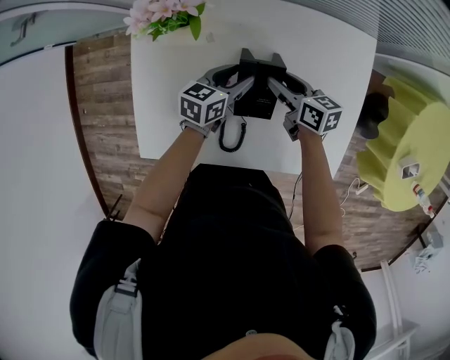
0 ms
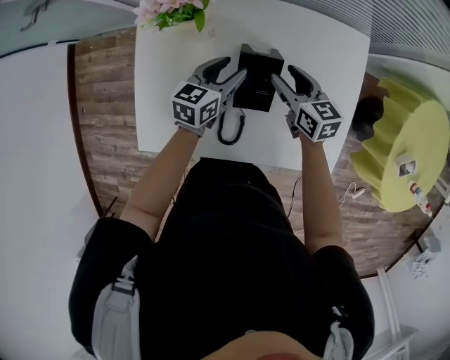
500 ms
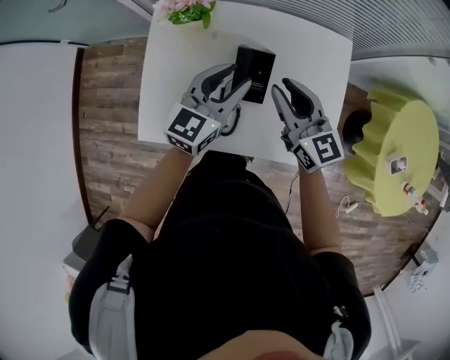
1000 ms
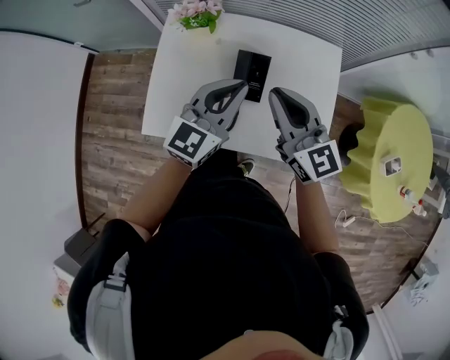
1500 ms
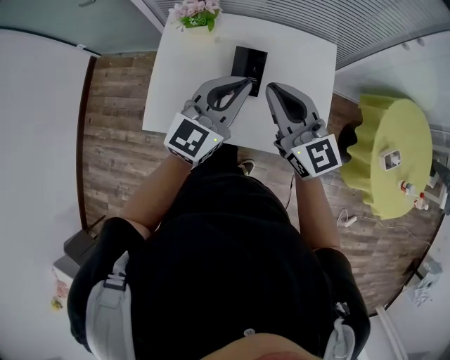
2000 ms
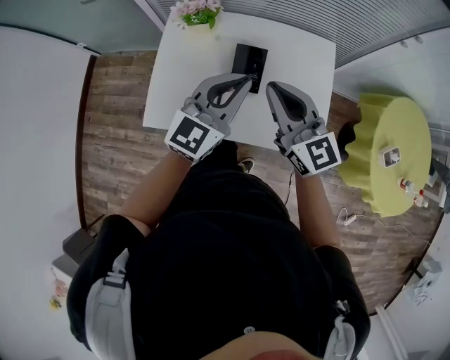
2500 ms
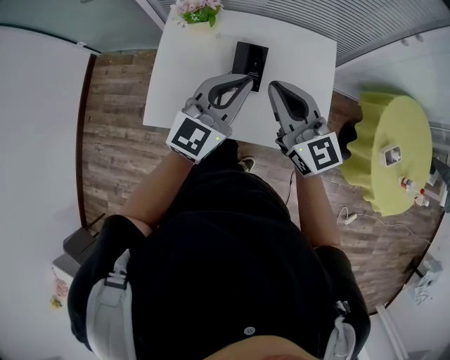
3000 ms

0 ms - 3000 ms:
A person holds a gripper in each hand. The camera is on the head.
0 ms - 1500 ms: The grippers both shift upward and backward by approximately 35 cm. The left gripper swivels some 40 degrees, and closes up. The right gripper twists roughly 40 degrees counterclockwise, seen from behind, and closes its fingers.
1500 ms - 3000 ms: The left gripper changes place by about 5 cm.

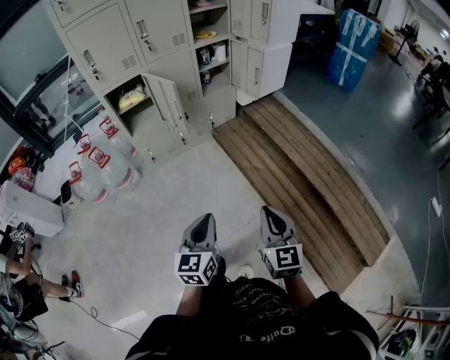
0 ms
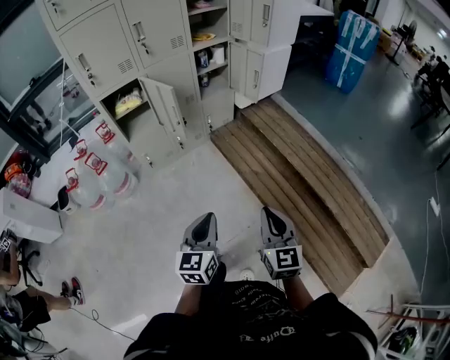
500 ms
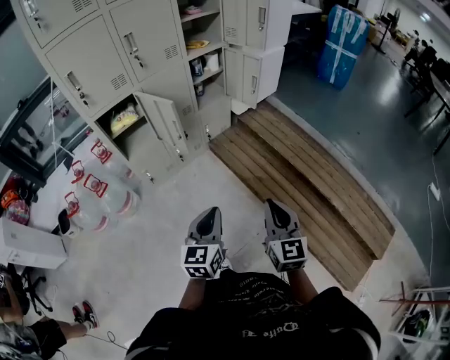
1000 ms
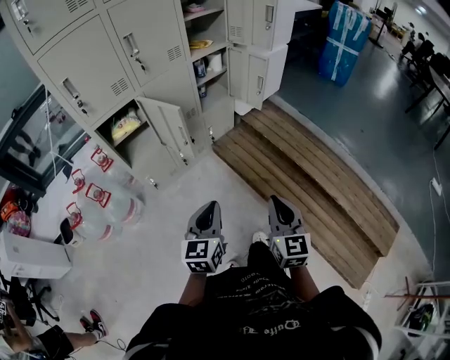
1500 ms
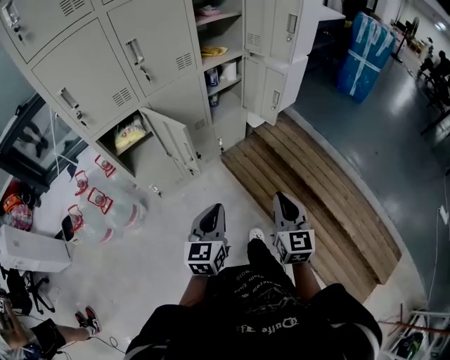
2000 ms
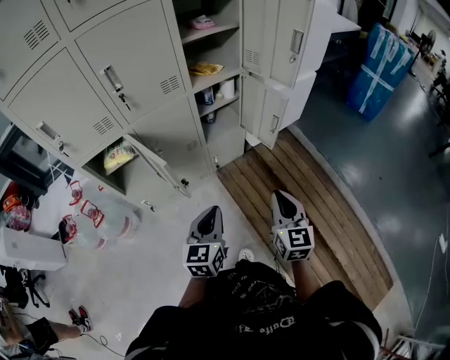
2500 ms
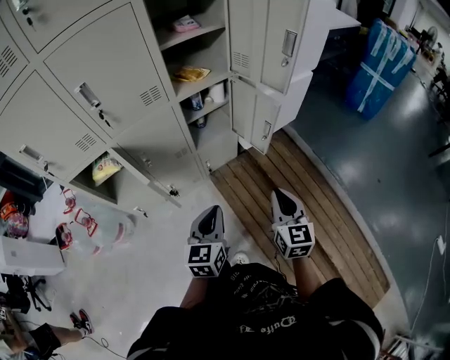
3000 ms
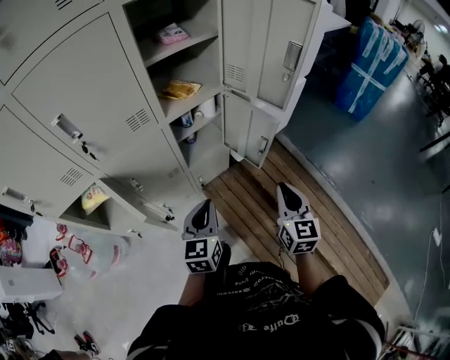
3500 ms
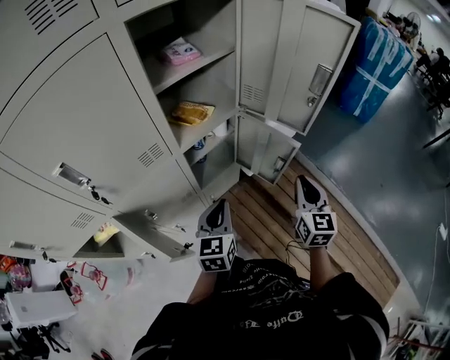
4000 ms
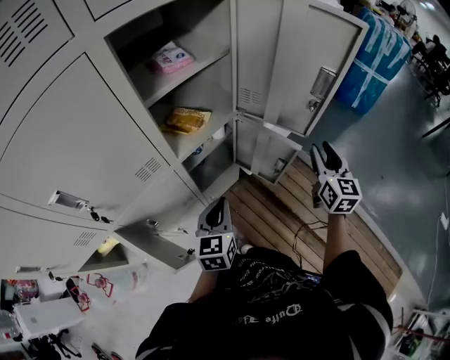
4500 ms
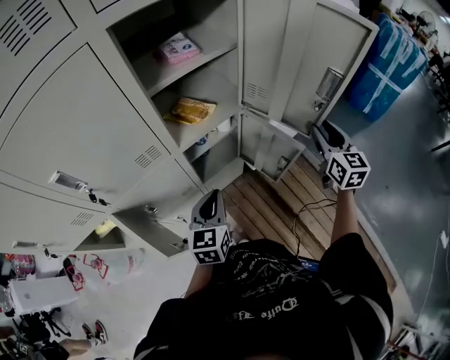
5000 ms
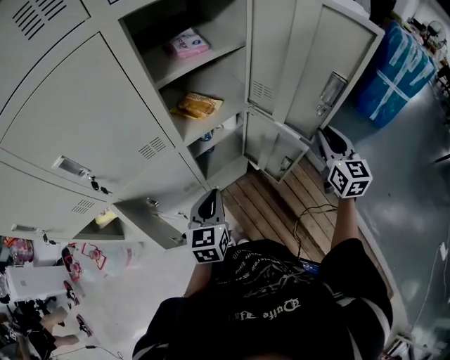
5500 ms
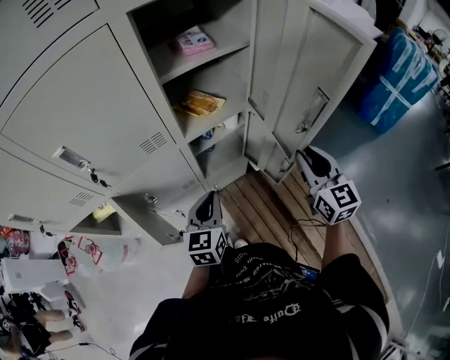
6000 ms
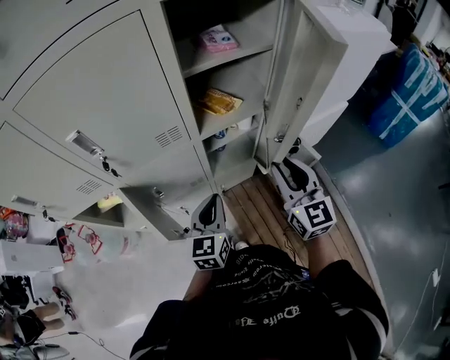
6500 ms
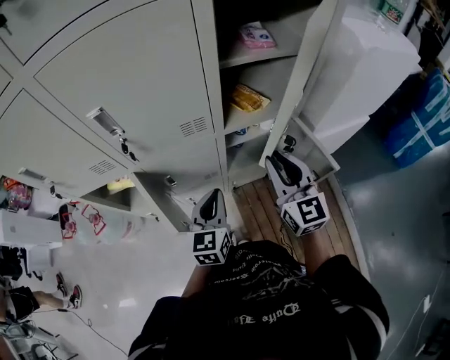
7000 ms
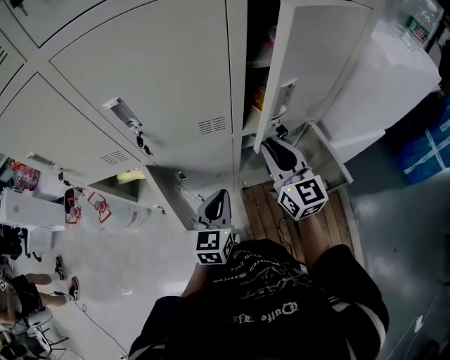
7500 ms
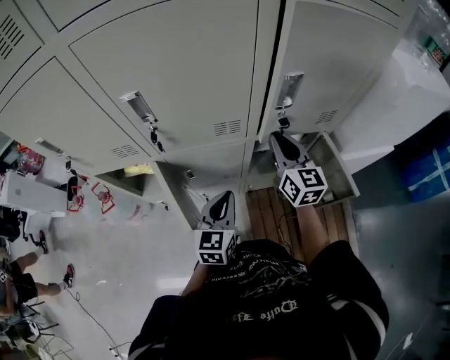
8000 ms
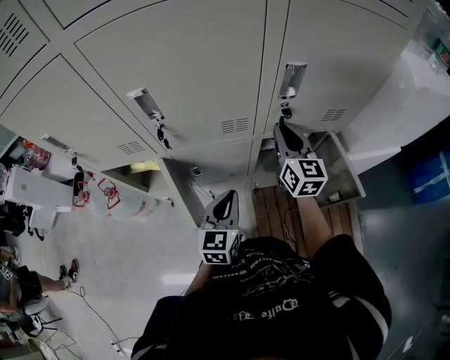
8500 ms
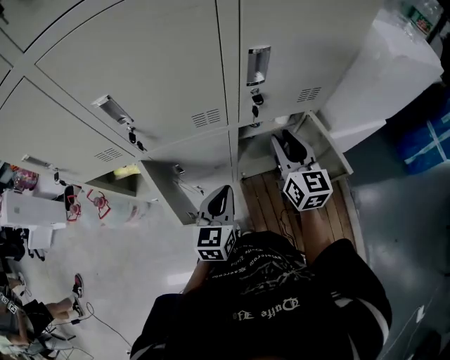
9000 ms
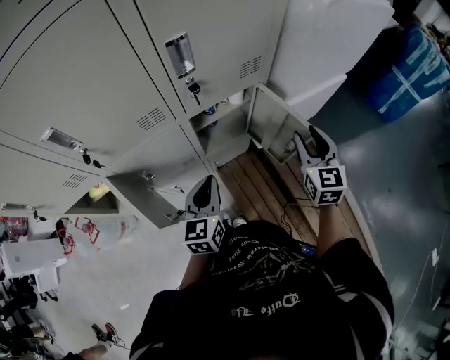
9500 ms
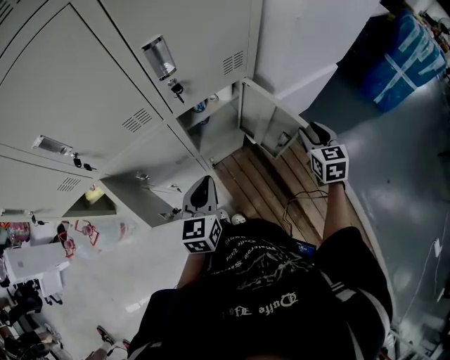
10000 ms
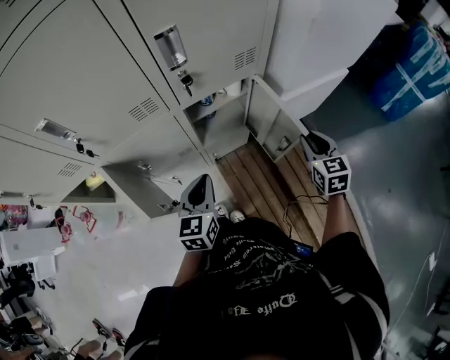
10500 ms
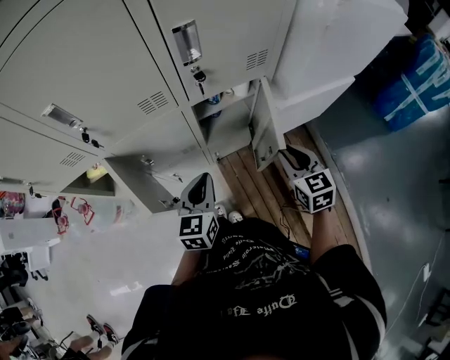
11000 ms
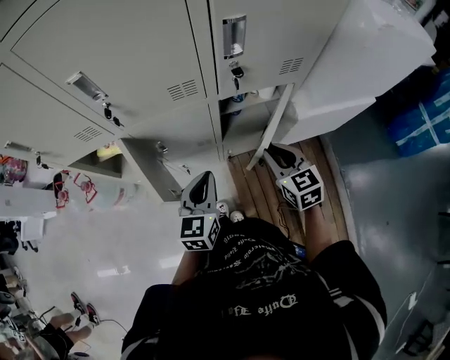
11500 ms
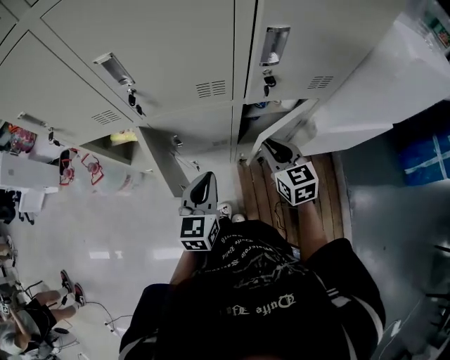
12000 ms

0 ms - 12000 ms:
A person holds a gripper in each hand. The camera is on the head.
0 ms - 2000 ms: Both grippers travel together forward, some 30 cm.
2000 ms - 4000 ms: Both grippers are carried forward, some 50 cm.
4000 ms - 6000 ms: The right gripper shifts approximately 10 cm forward and upward, and rotates about 30 degrees.
6000 ms - 8000 ms: The right gripper goes approximately 30 cm to the left and forward, and changes its angle by some 20 degrees; the left gripper goes about 10 cm to the left.
8000 ms - 10000 ms: The left gripper goes some 10 cm to the right. Meanwhile the right gripper goes approximately 30 cm to the right, rotates about 40 degrees, and opens its fingers.
10000 ms - 12000 ms: The right gripper shifts by some 30 cm, swivels some 40 degrees, and closes up. The left gripper ends up about 10 cm from where it was.

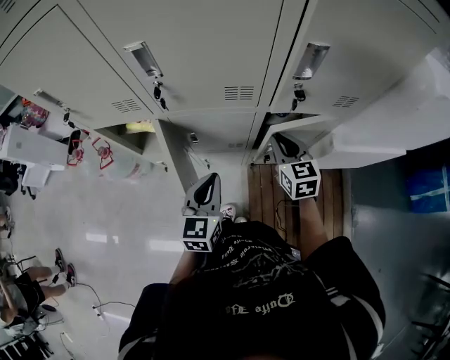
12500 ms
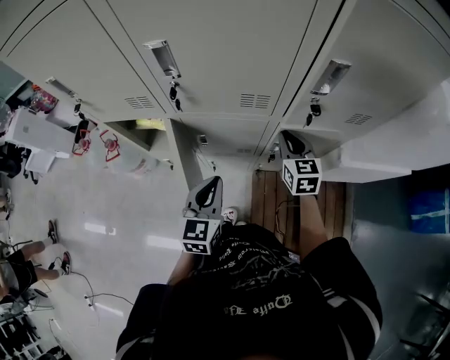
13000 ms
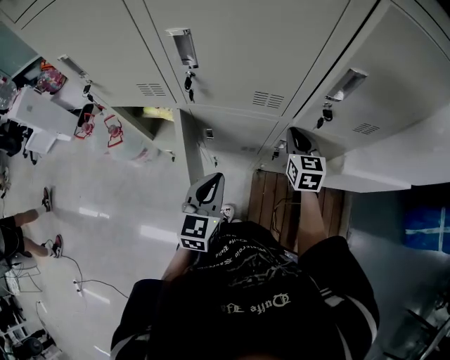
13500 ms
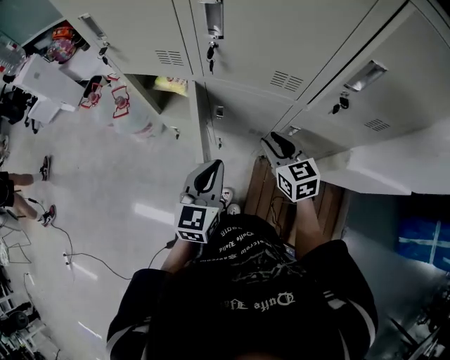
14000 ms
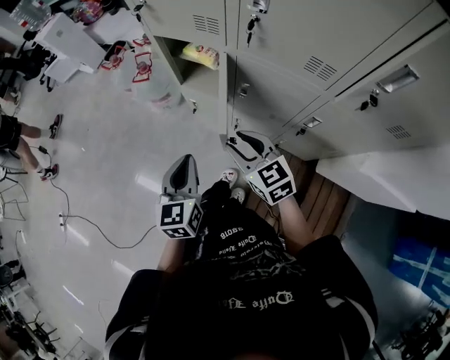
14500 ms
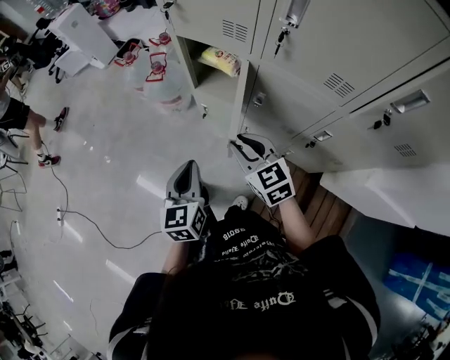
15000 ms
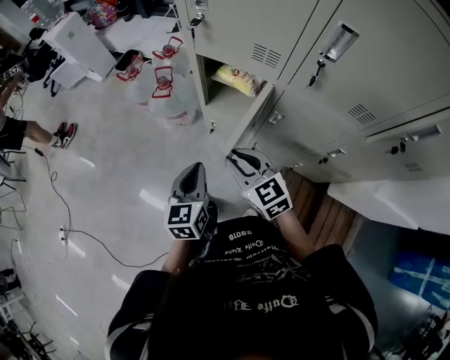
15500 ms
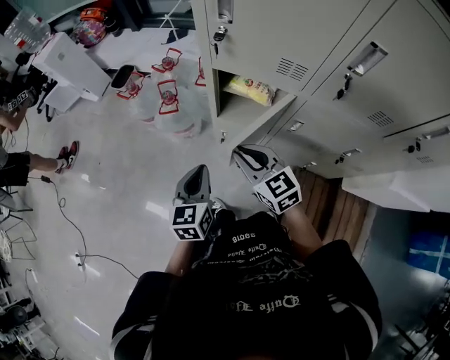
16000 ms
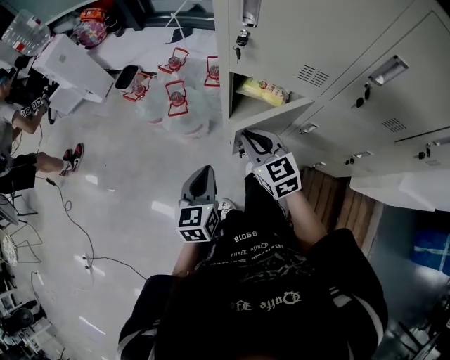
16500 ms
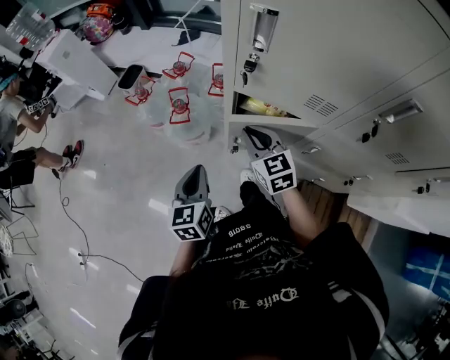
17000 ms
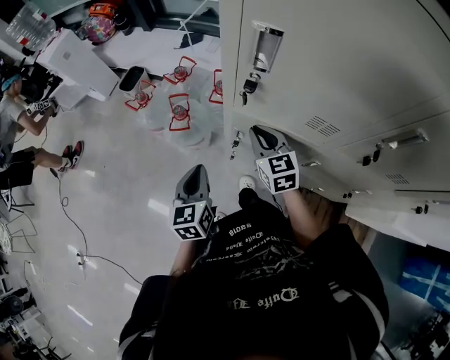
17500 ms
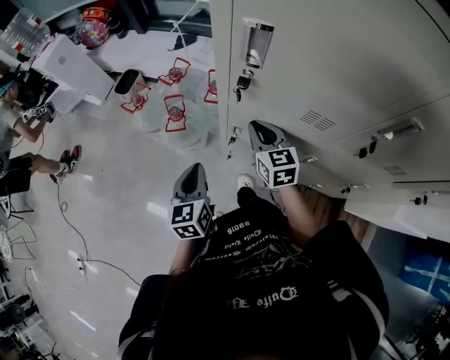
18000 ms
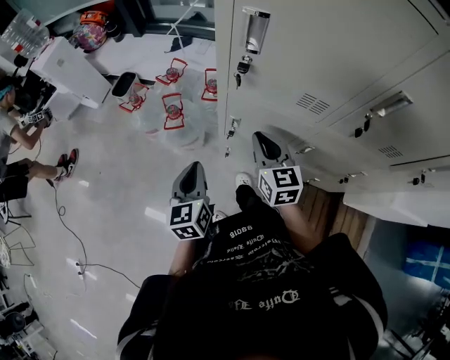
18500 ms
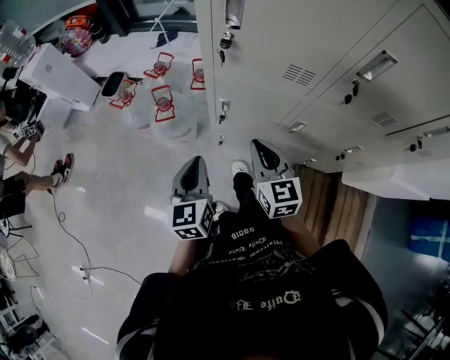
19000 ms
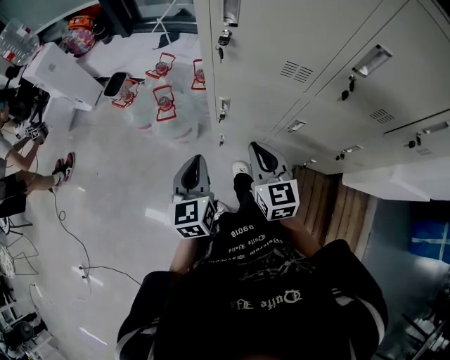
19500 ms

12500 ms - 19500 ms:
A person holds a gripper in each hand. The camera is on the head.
12500 ms - 14500 ms: The left gripper moves some 20 cm, and swivels approximately 40 degrees. The right gripper changes place by some 30 cm, changes its angle by about 50 degrees, and opens up.
14500 ms - 16000 ms: The grippers both shift forward and to the left by about 25 cm.
16000 ms - 17500 ms: The grippers both shift forward by roughly 15 cm.
17500 ms - 19500 ms: The right gripper goes about 20 cm backward, while the left gripper goes some 10 cm backward.

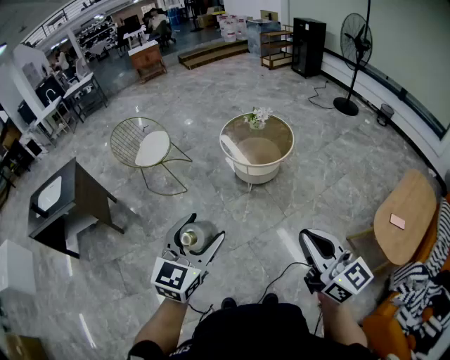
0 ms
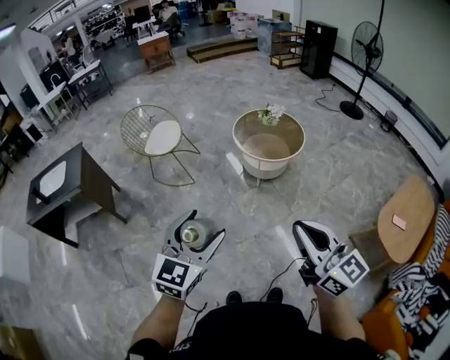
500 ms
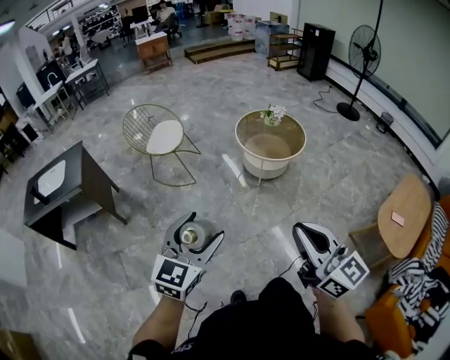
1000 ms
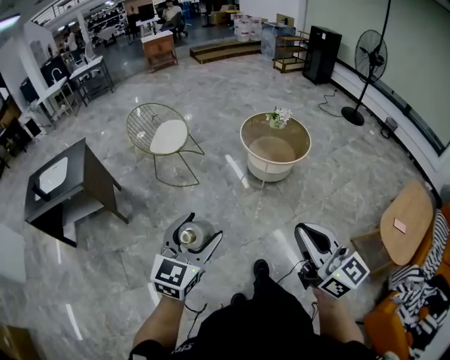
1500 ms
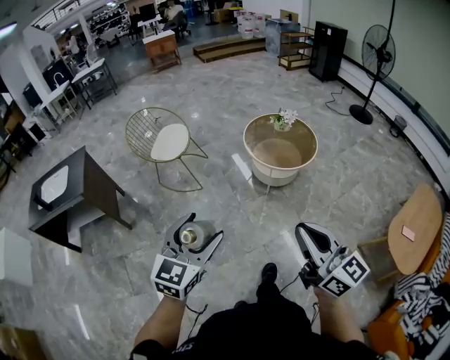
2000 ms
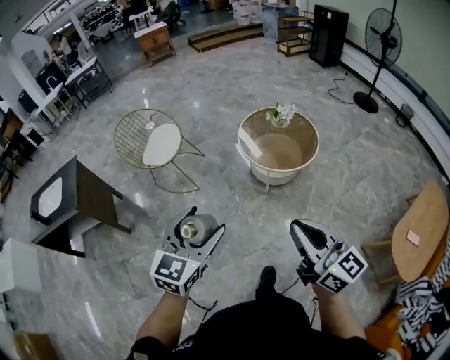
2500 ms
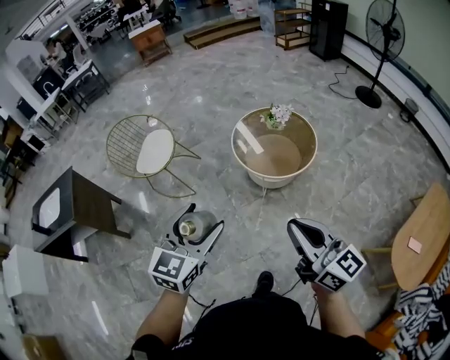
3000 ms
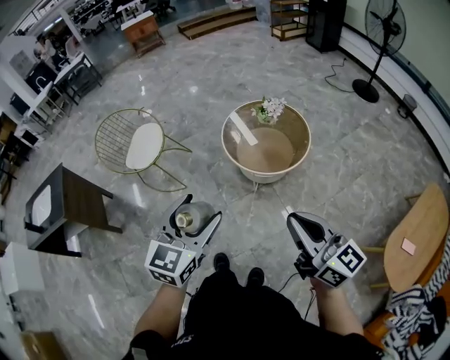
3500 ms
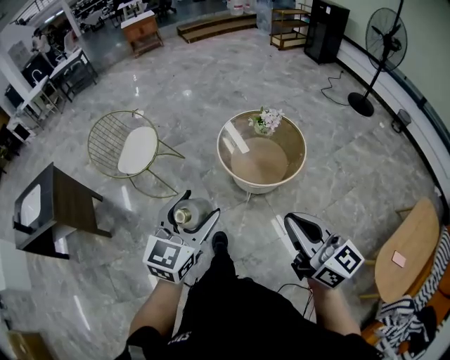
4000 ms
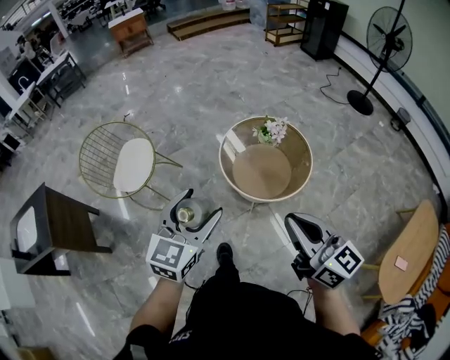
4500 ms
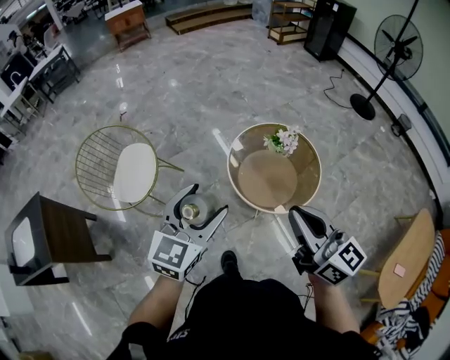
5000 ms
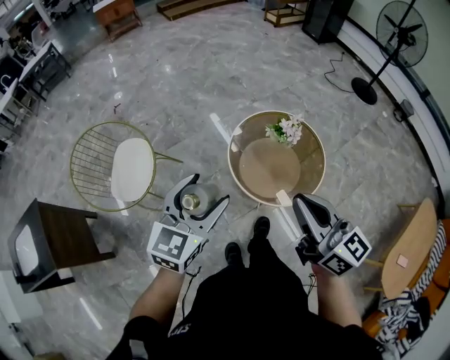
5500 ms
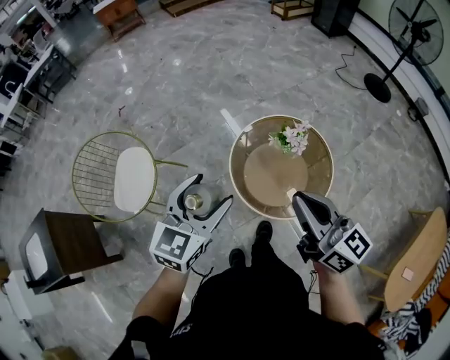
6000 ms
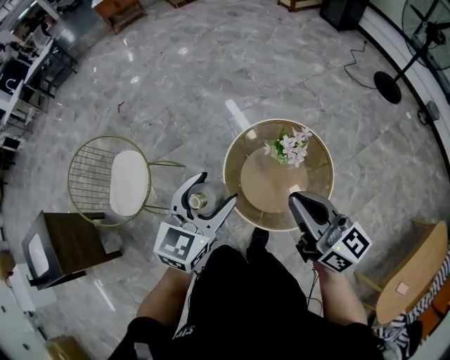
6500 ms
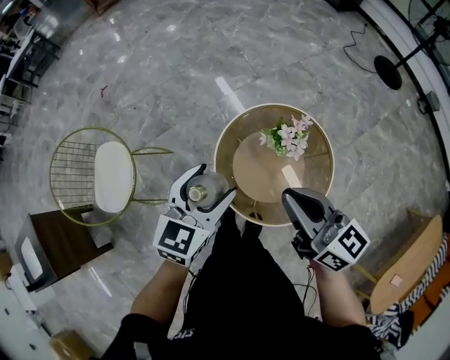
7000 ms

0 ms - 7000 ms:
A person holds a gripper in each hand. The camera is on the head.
0 ms - 2000 ms: The two grippers go roughly 20 cm to the left and forward.
2000 ms - 3500 ms: The grippers both shift forward and to the right by roughly 35 cm.
3500 ms - 5000 ms: The right gripper is displaced forward and to the left by roughly 35 cm. The left gripper goes approximately 35 cm forward.
5000 ms - 7000 ms: The left gripper shifts some 40 cm forward, downward and to the right. Meanwhile the right gripper heads forward and downward, covering some 35 cm.
